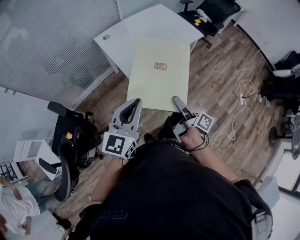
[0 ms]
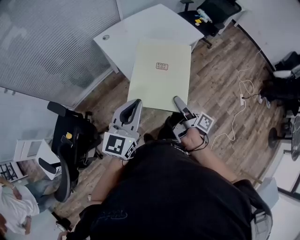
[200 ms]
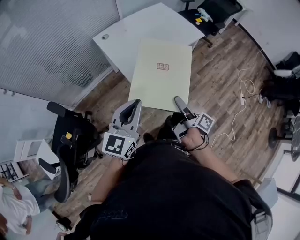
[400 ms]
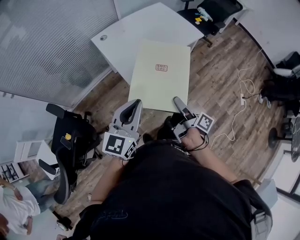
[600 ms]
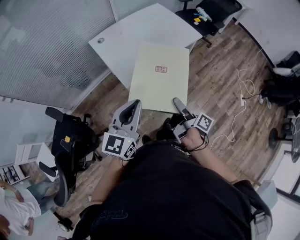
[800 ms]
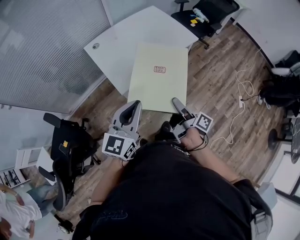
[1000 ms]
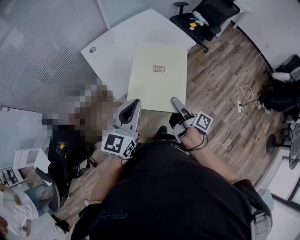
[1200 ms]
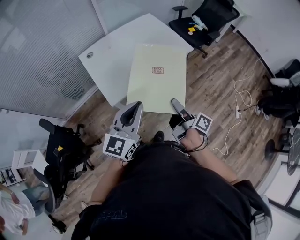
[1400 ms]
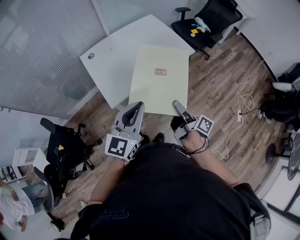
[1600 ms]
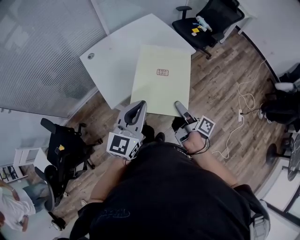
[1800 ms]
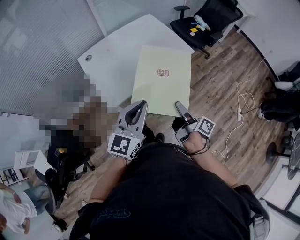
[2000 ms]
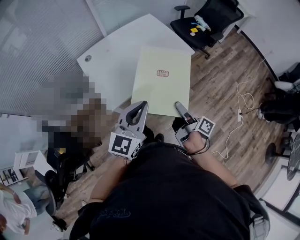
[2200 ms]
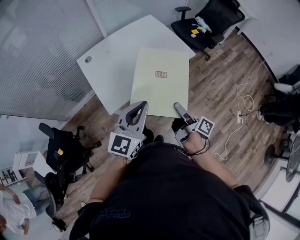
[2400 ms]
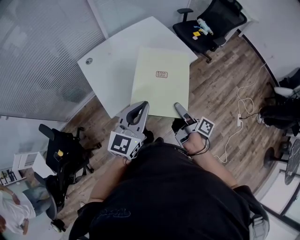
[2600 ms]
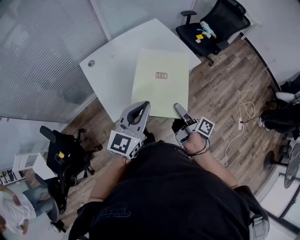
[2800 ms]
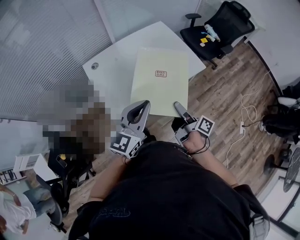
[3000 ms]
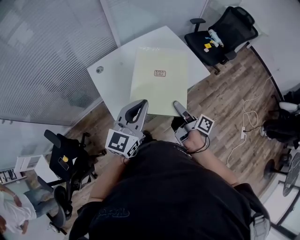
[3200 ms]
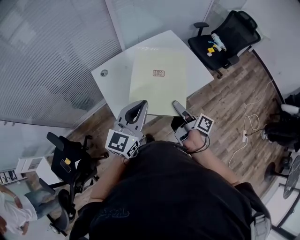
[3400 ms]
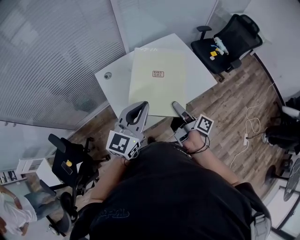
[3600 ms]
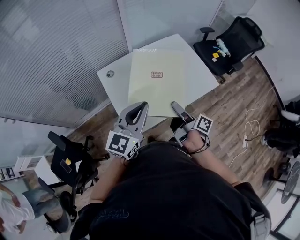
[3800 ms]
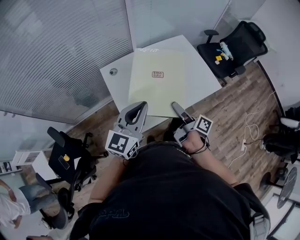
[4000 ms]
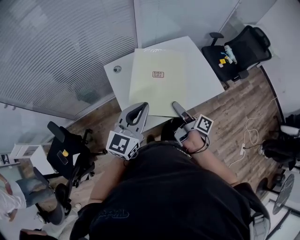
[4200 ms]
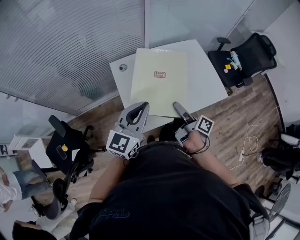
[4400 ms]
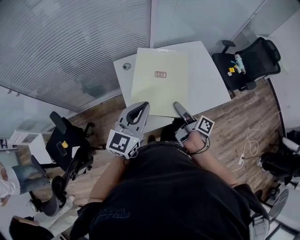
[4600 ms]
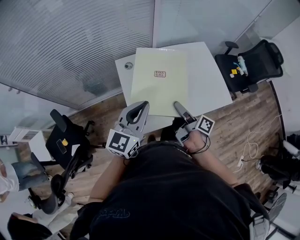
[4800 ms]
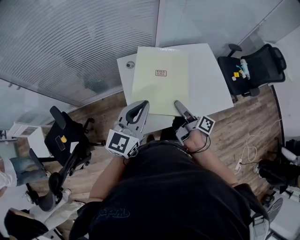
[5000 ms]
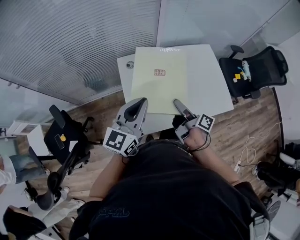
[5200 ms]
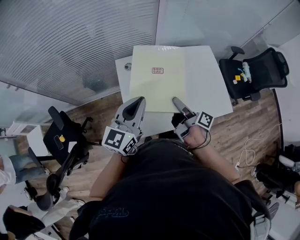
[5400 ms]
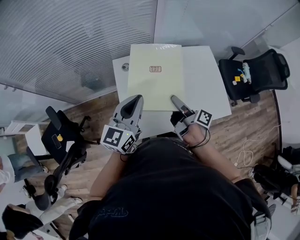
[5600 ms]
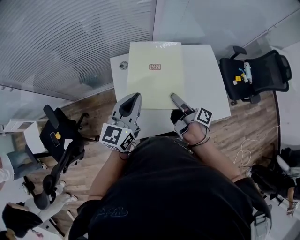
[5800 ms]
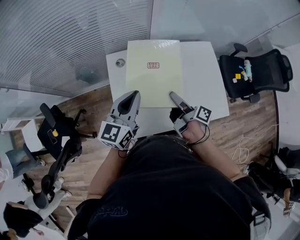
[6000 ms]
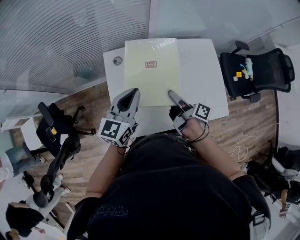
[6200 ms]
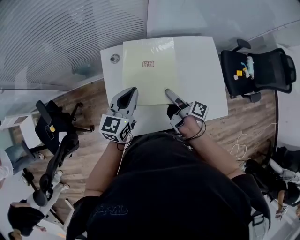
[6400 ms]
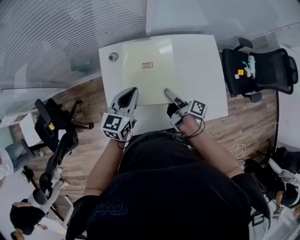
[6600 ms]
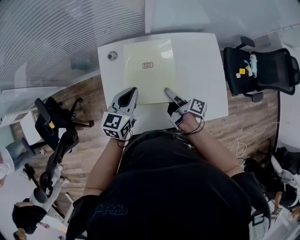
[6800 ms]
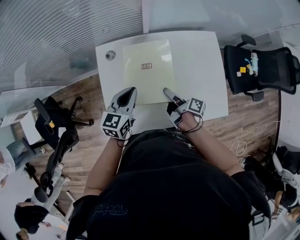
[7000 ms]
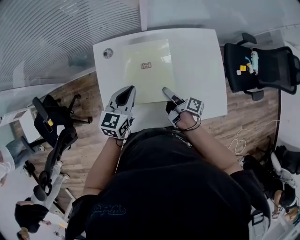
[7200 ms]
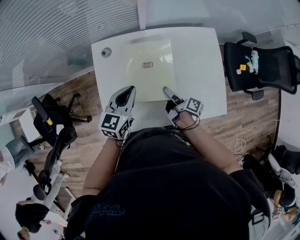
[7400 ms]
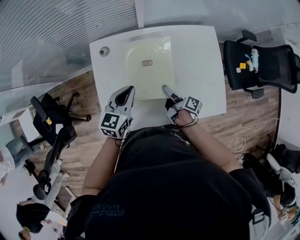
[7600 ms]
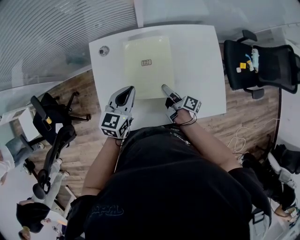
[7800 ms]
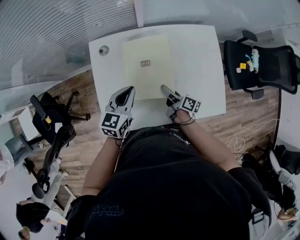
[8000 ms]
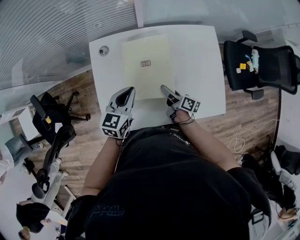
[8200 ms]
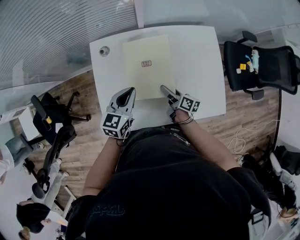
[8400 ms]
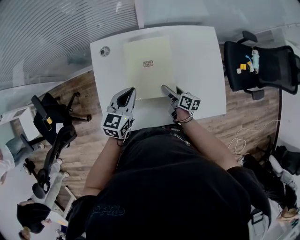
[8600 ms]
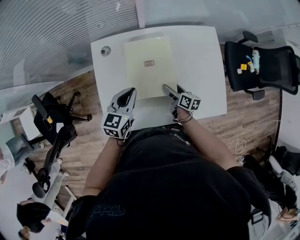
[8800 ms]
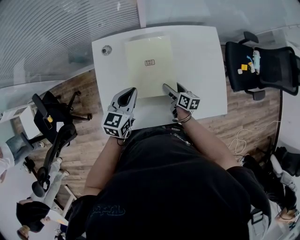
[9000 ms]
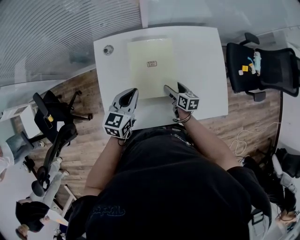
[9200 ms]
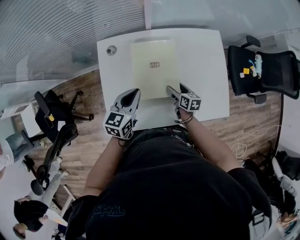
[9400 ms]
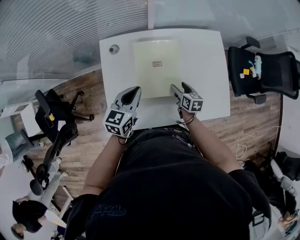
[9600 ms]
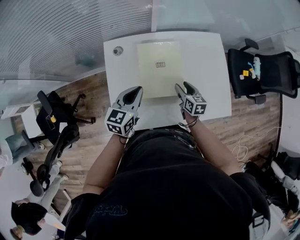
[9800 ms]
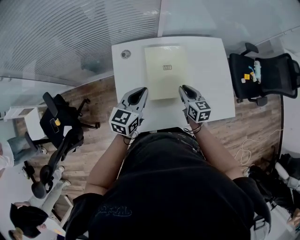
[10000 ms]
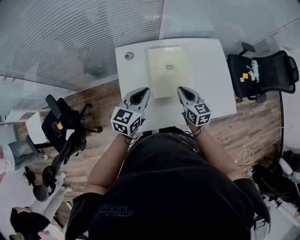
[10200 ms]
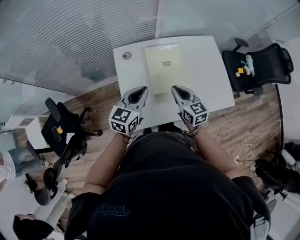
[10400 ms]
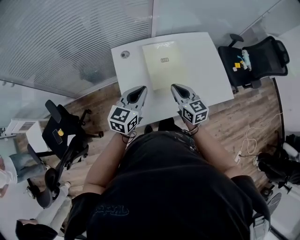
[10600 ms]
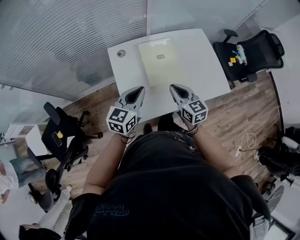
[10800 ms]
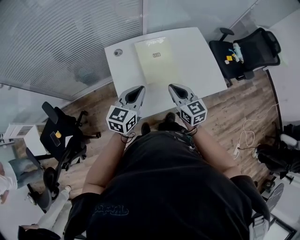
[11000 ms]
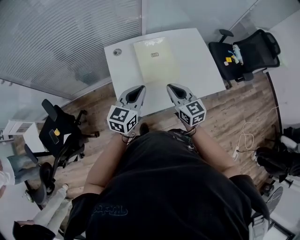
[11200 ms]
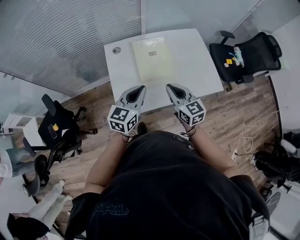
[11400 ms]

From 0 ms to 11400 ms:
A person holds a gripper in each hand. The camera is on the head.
From 0 ms to 1400 ms: The right gripper travels forward and to the right by approximately 20 cm, while the left gripper shifts roughly 20 cm to the right and forward.
From 1400 ms to 2800 ms: The grippers both shift forward by approximately 10 cm.
From 2800 ms to 4200 ms: Both grippers move to the left and forward, some 20 cm.
From 4200 ms to 5600 ms: Both grippers move forward, some 10 cm.
From 5600 ms to 7200 ms: The left gripper heads downward, forward and to the right, covering roughly 20 cm, and changes its angle by some 20 degrees. The right gripper travels downward and to the right by roughly 15 cm.
From 7200 ms to 8600 ms: The right gripper is displaced downward by roughly 10 cm, and changes its angle by some 30 degrees.
From 8600 ms to 10000 ms: The right gripper heads upward, covering approximately 10 cm, changes its angle by approximately 40 degrees, and closes. Meanwhile the left gripper shifts roughly 5 cm to the left.
From 10000 ms to 11400 ms: The left gripper shifts approximately 15 cm backward, while the right gripper heads backward and upward, covering some 20 cm.

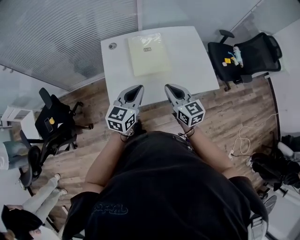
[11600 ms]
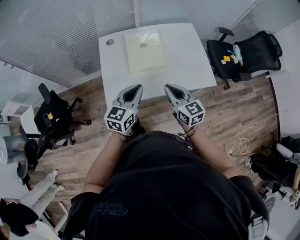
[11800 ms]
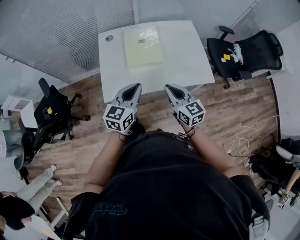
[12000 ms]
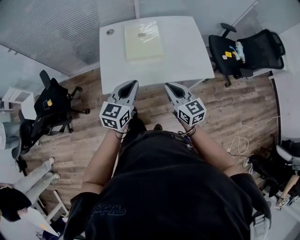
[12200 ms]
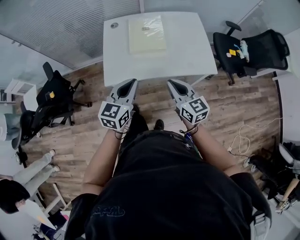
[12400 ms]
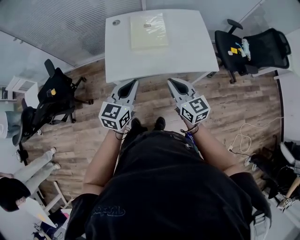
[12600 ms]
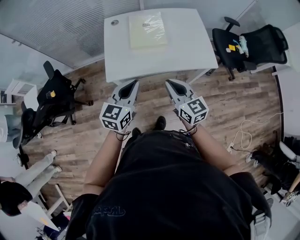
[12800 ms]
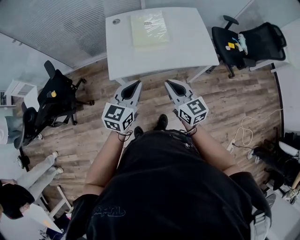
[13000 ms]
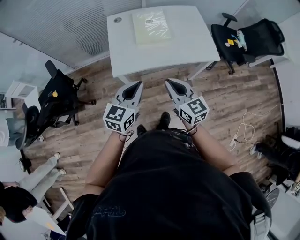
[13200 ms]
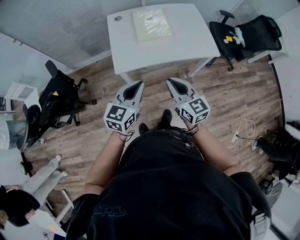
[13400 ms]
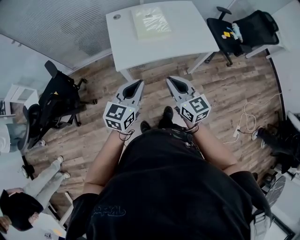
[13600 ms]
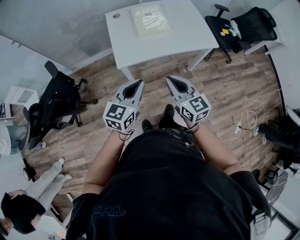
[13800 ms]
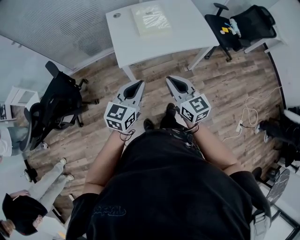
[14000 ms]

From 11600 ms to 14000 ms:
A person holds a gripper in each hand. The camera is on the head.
From 11600 ms to 12800 ms: Both grippers travel together backward, roughly 15 cm.
From 12800 ms to 14000 ms: The two grippers go some 15 cm backward and to the left.

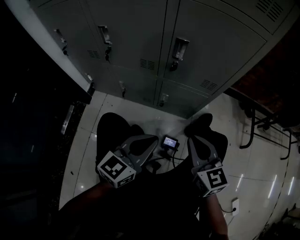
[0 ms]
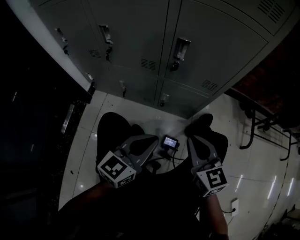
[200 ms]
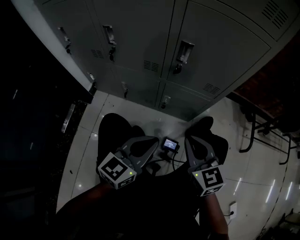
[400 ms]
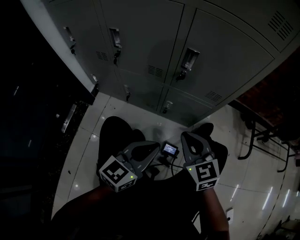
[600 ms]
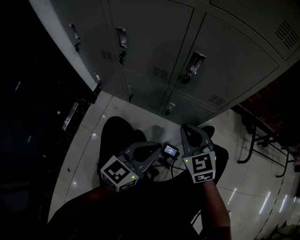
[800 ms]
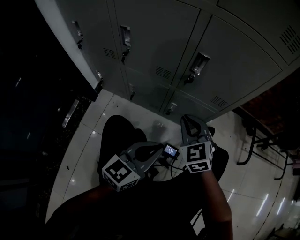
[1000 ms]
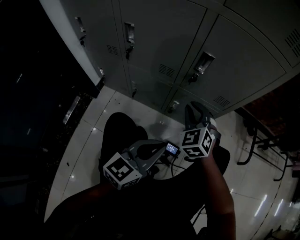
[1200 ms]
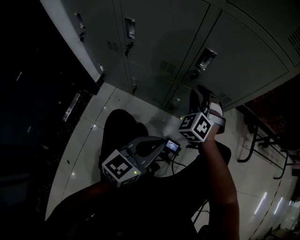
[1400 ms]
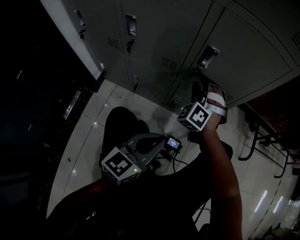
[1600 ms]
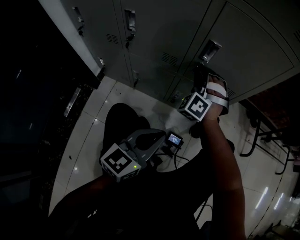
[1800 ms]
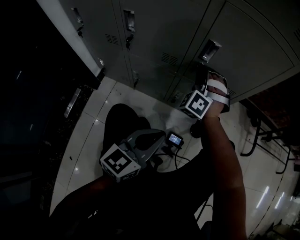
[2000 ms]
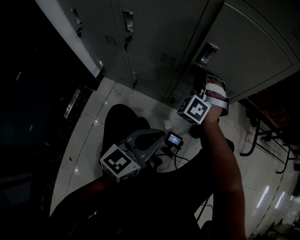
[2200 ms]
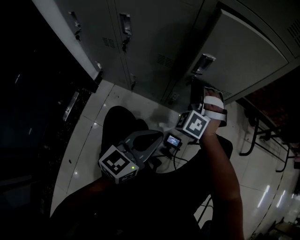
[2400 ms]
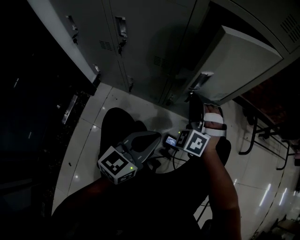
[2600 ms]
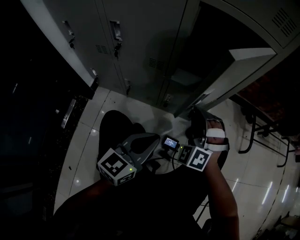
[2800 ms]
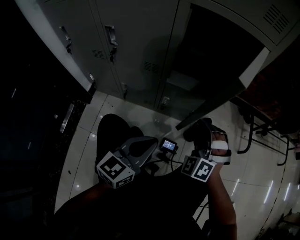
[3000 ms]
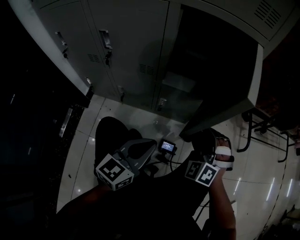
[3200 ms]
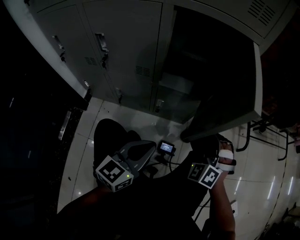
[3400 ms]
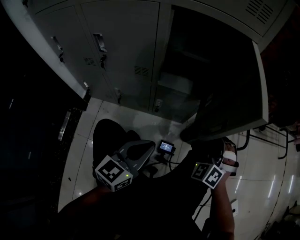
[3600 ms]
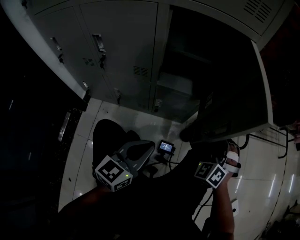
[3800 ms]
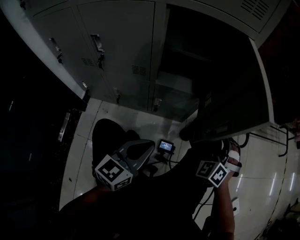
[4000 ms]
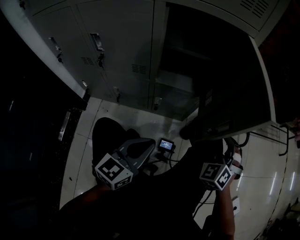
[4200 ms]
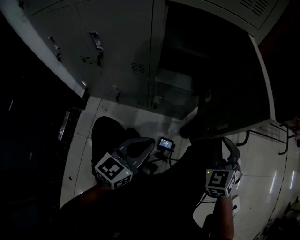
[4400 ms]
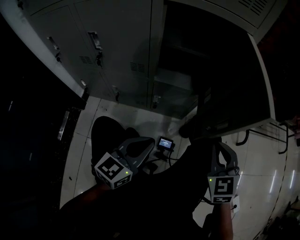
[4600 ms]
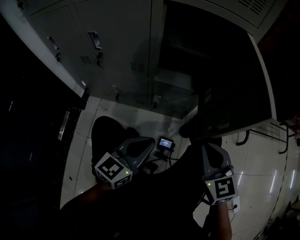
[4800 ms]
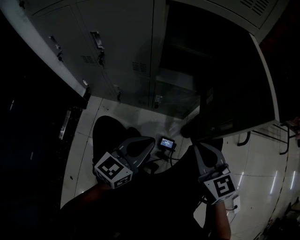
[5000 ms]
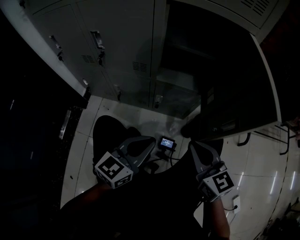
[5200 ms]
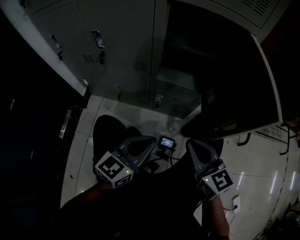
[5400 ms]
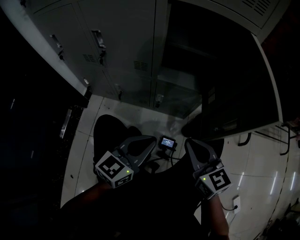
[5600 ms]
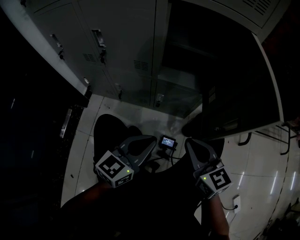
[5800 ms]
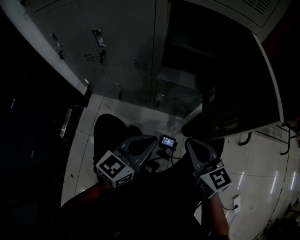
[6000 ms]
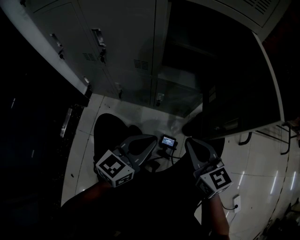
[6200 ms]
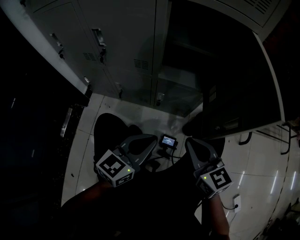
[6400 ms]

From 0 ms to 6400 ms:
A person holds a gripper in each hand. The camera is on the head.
From 0 ms to 1600 ms: The right gripper moves forward and to the left, about 25 cm, twists about 70 degrees counterclockwise, seen from behind, and opens.
From 1600 ms to 3200 ms: The right gripper goes roughly 20 cm to the right and backward, and closes up.
From 3200 ms to 4800 ms: The right gripper shifts approximately 10 cm backward and upward, and rolls clockwise, seen from behind, by about 50 degrees.
From 4800 ms to 6400 ms: The right gripper moves to the left, some 5 cm, and changes its angle by approximately 20 degrees.

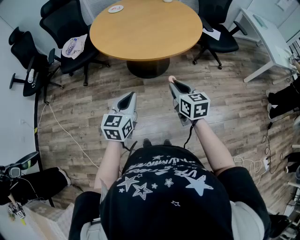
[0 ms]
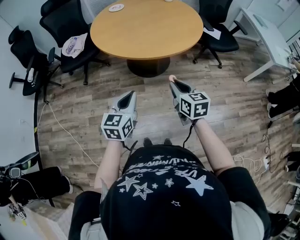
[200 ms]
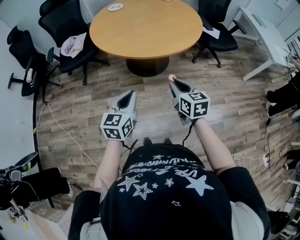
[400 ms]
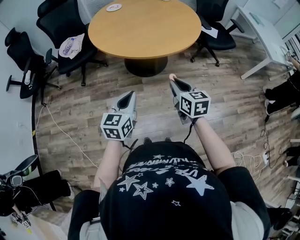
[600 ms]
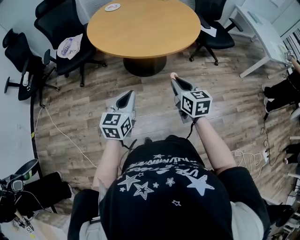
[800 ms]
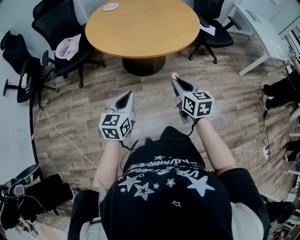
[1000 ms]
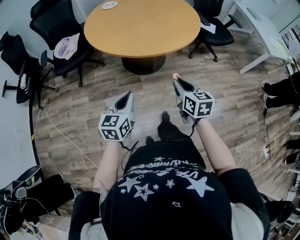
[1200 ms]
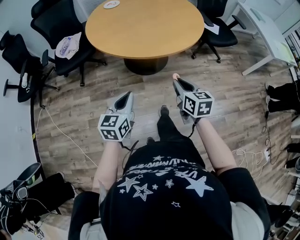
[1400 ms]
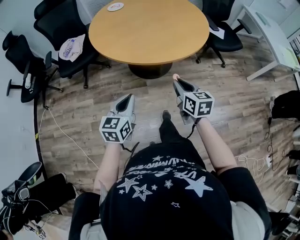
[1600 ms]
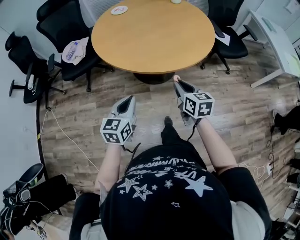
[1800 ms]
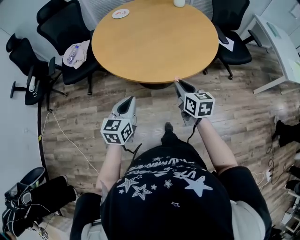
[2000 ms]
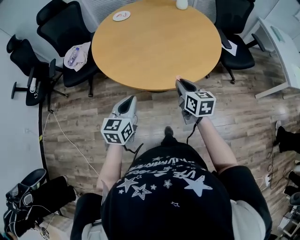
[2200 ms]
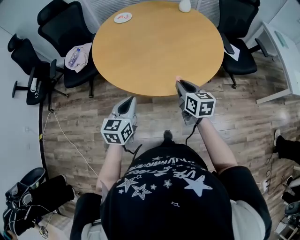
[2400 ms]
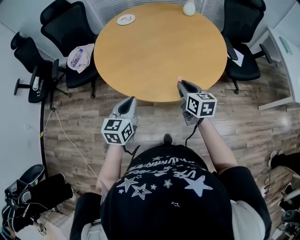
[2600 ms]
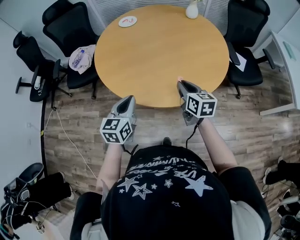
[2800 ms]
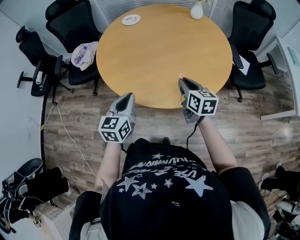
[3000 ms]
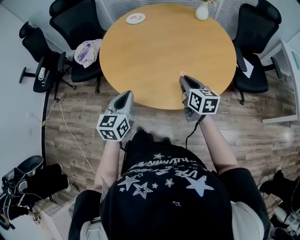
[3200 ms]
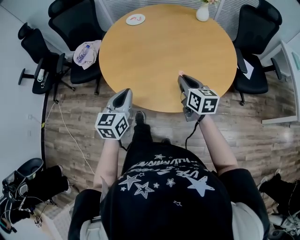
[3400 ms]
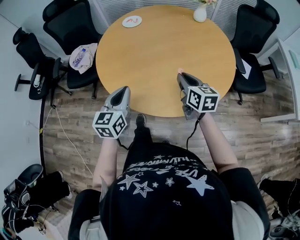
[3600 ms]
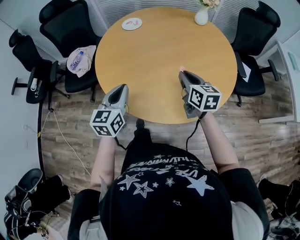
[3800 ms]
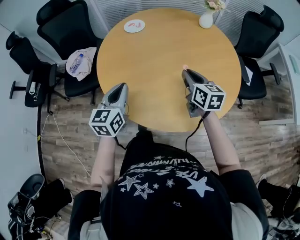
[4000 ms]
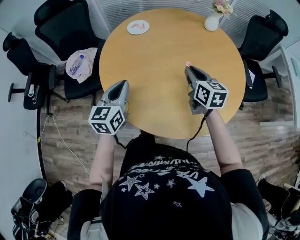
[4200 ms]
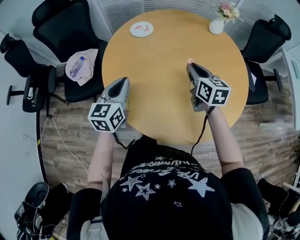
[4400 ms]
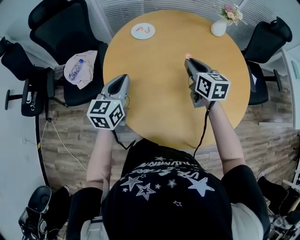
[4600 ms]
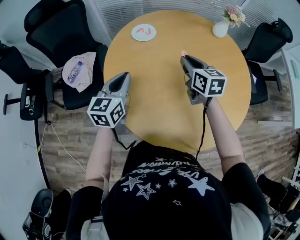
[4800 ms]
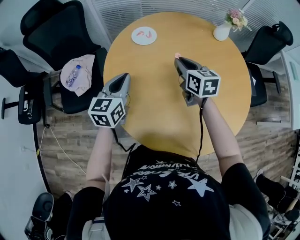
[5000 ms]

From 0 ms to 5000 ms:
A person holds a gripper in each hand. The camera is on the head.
From 0 ms to 1600 ms: The right gripper heads forward, covering some 5 cm. The left gripper is displaced to the left and forward by approximately 10 cm.
From 1600 ms to 3400 ms: Both grippers move forward, approximately 30 cm.
From 3400 ms to 5000 ms: Both grippers travel together forward and to the left, approximately 40 cm.
